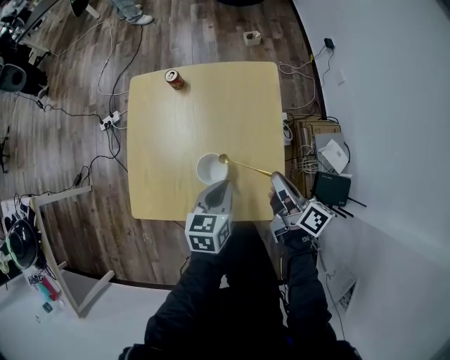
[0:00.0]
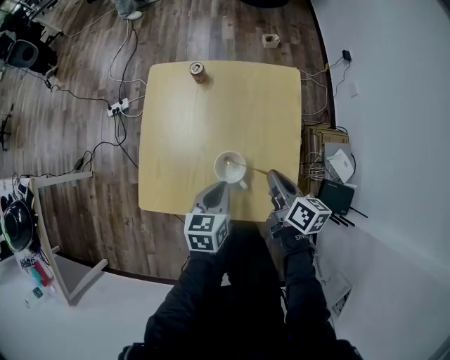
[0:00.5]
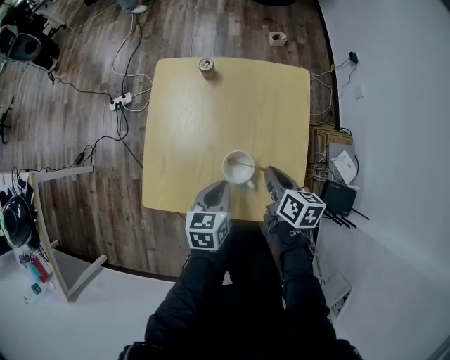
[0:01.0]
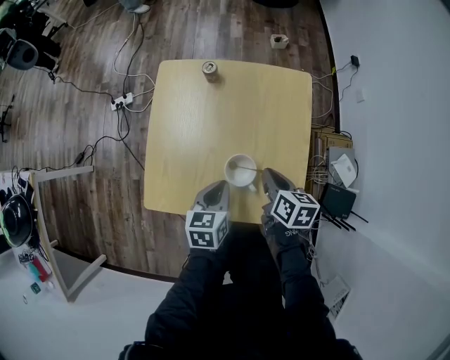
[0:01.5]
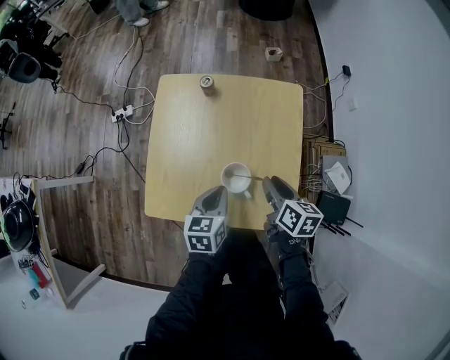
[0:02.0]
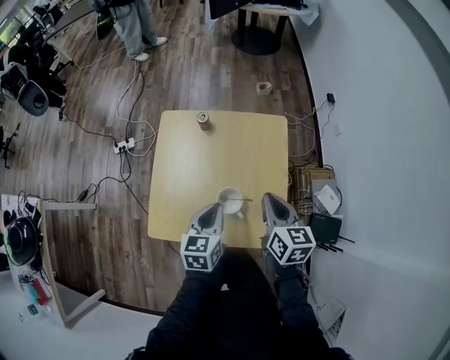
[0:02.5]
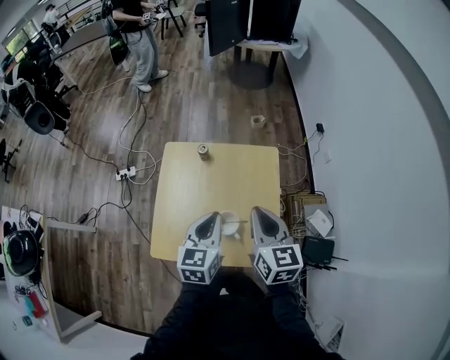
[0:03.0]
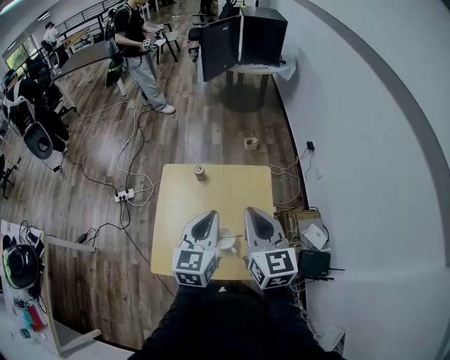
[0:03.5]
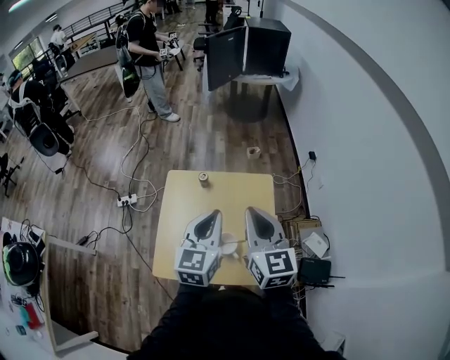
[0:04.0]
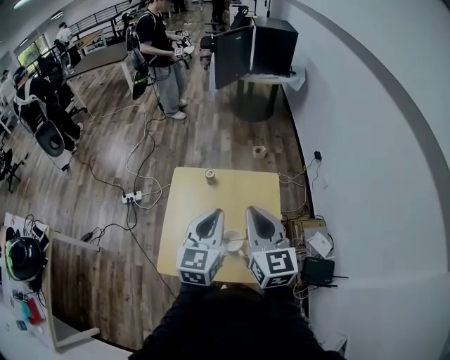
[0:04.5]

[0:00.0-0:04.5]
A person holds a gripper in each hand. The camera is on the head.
0:00.0 to 0:02.0: Both grippers move to the left, some 10 cm. The right gripper rotates roughly 30 degrees, and opens up.
0:02.0 to 0:04.5: Both grippers travel together upward, about 30 cm. The left gripper rotates roughly 30 degrees; the right gripper turns by approximately 50 degrees, and closes its fingers.

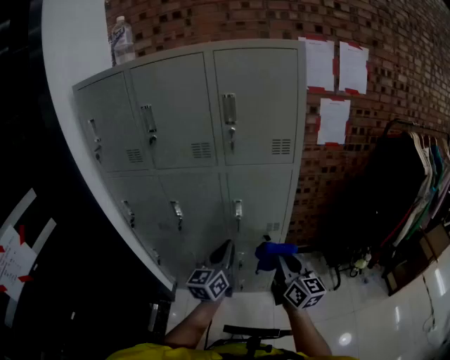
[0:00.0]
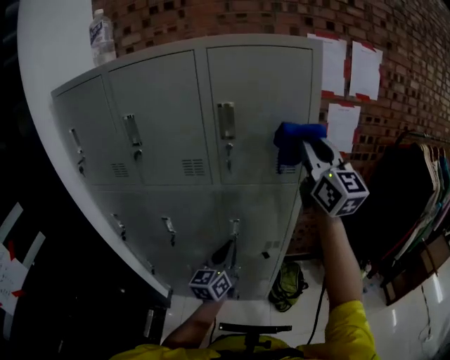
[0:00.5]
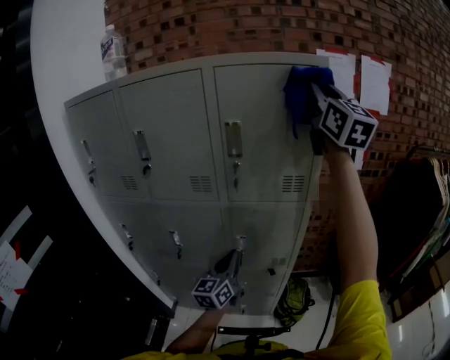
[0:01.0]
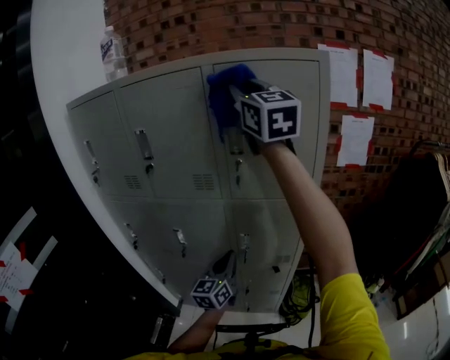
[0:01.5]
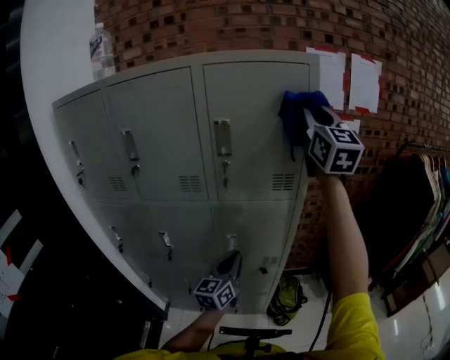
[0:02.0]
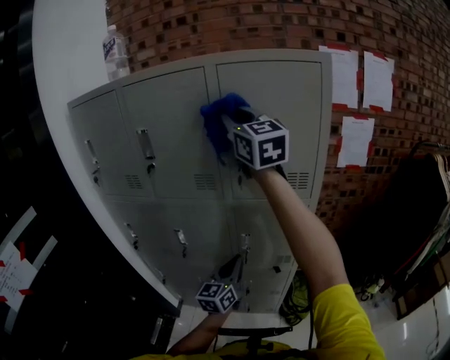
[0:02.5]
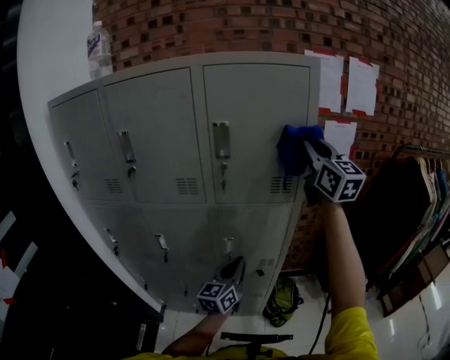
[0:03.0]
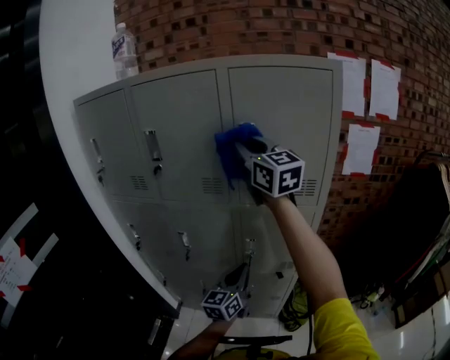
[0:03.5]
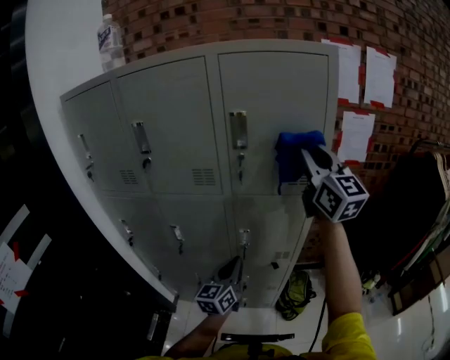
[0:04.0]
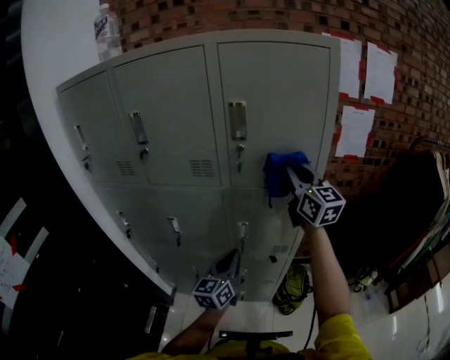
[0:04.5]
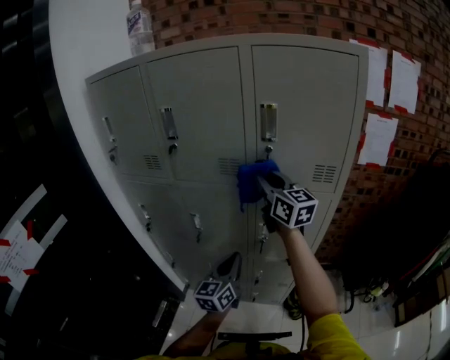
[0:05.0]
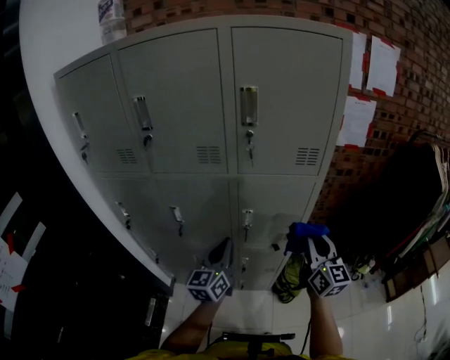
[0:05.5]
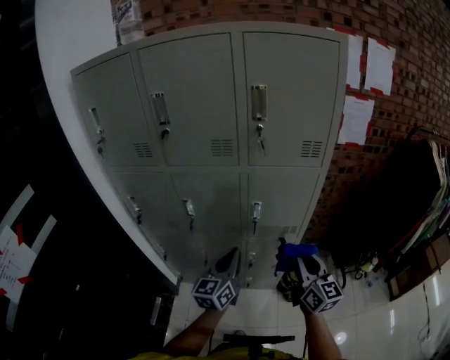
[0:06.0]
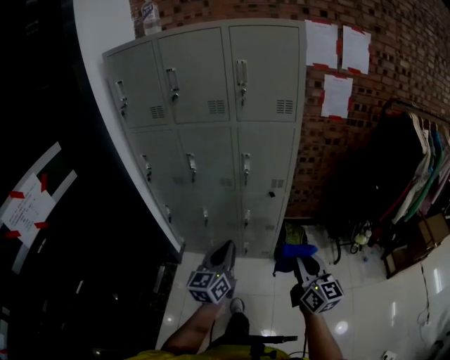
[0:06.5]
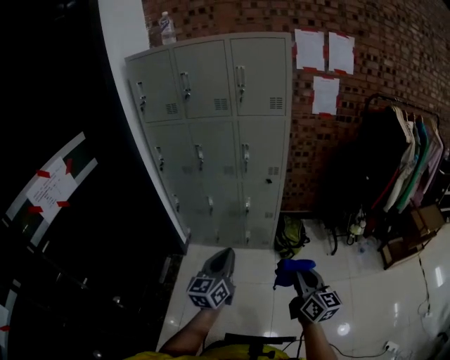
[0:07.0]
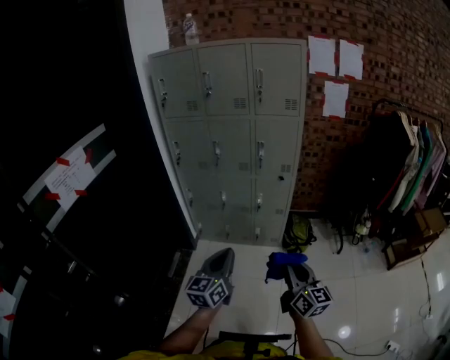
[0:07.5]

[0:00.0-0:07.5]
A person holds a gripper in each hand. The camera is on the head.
0:00.0 to 0:02.0: The right gripper heads upward and forward, covering some 50 cm, and swivels about 40 degrees, while the left gripper travels forward by roughly 15 cm.
0:02.0 to 0:04.0: The right gripper goes left and right, about 25 cm each way, reversing 3 times, while the left gripper swings left and right, some 5 cm each way, with 2 reversals.
0:04.0 to 0:05.5: The right gripper heads downward, covering about 25 cm, and rotates about 20 degrees.
0:05.5 to 0:07.5: Both grippers are carried backward, some 60 cm.

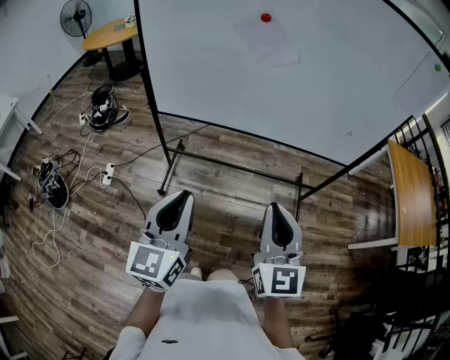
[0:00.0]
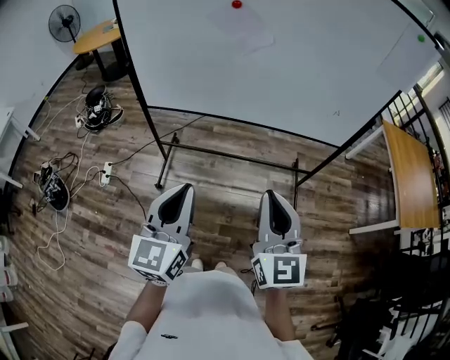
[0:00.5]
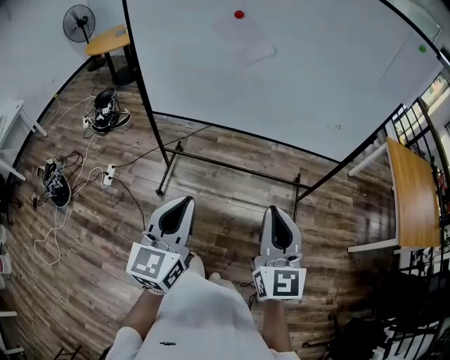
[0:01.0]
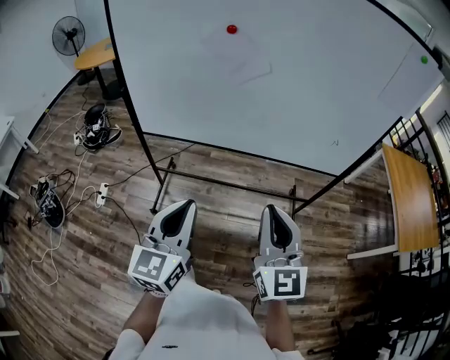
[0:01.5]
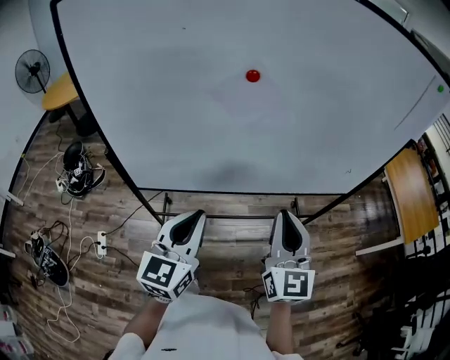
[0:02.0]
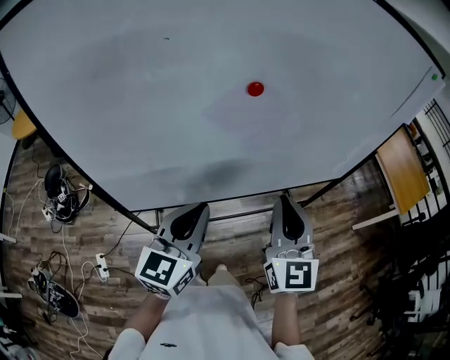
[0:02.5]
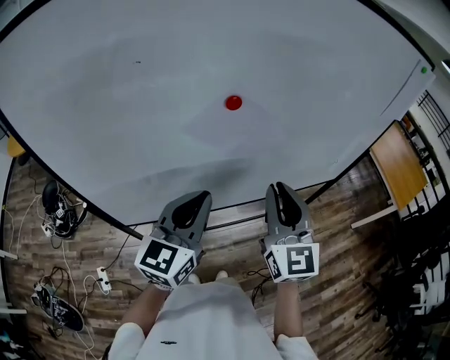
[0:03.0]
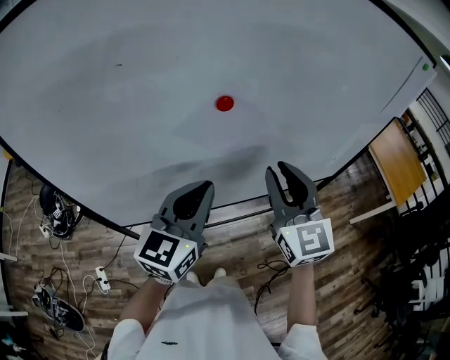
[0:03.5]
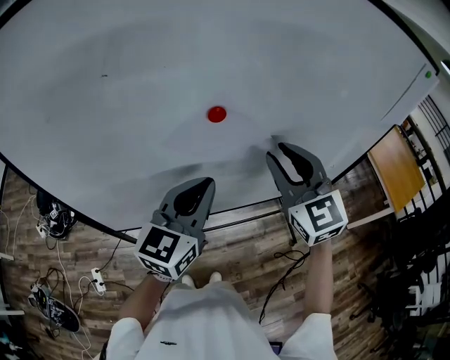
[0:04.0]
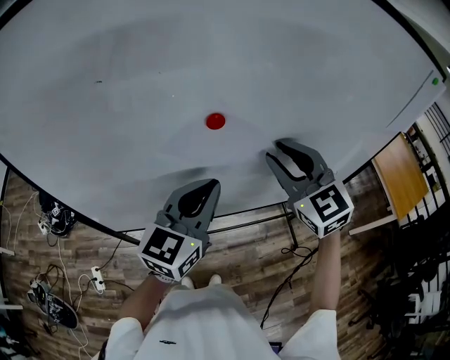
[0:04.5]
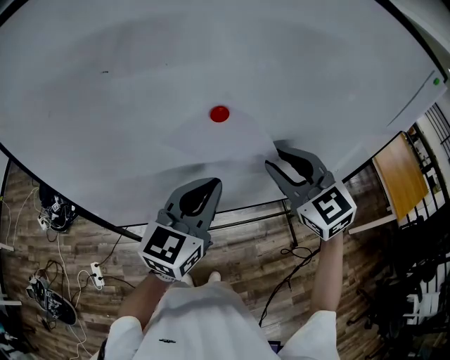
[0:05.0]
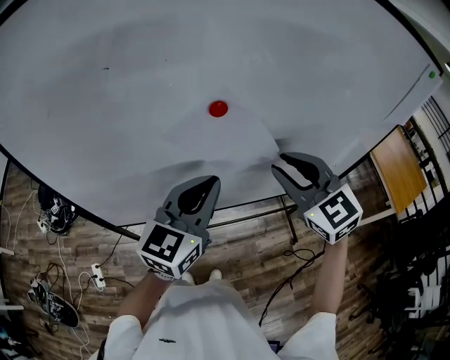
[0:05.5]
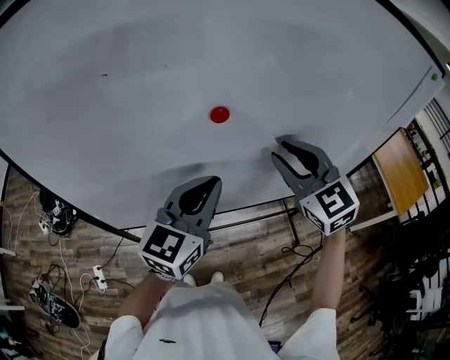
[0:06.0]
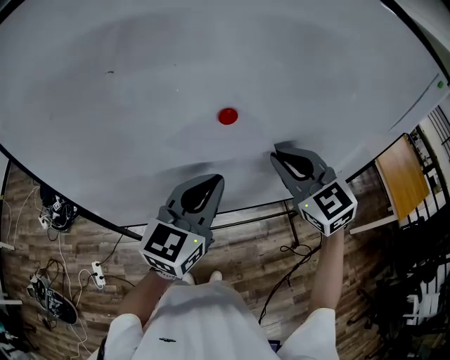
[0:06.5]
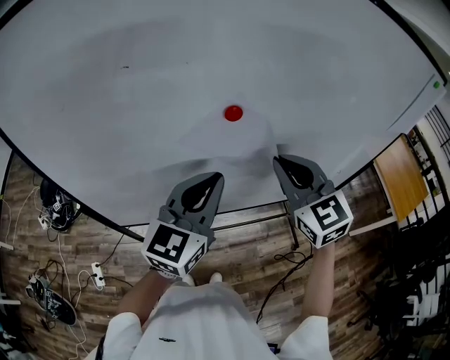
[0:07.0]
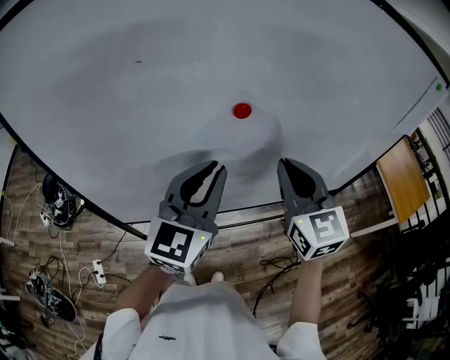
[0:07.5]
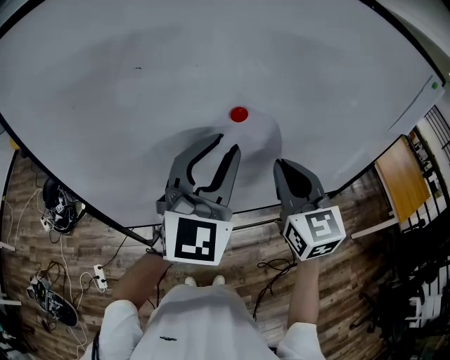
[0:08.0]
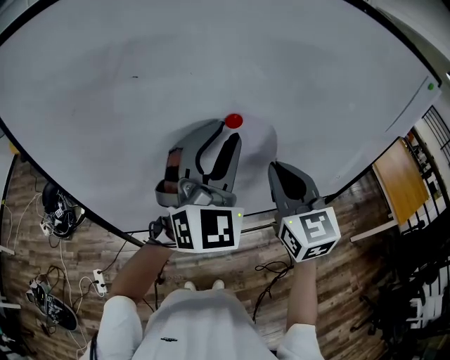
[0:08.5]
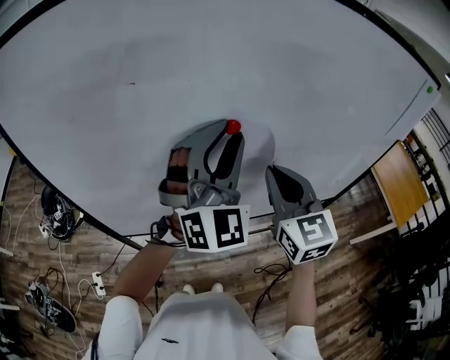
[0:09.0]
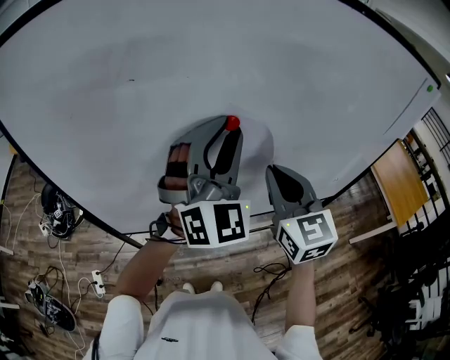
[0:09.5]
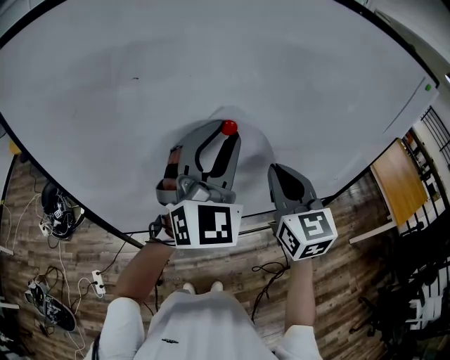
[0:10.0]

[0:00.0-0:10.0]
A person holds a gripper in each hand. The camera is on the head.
0:00.0 to 0:02.0: The grippers both shift forward by approximately 25 cm.
0:02.0 to 0:04.0: The right gripper travels forward and upward by some 25 cm, swivels roughly 20 degrees, and opens. The left gripper shifts some 20 cm forward.
0:04.0 to 0:06.0: There are only small adjustments of the grippers.
0:06.0 to 0:08.0: The right gripper turns by about 20 degrees, and closes; the left gripper moves upward, approximately 10 cm, and swivels some 30 degrees.

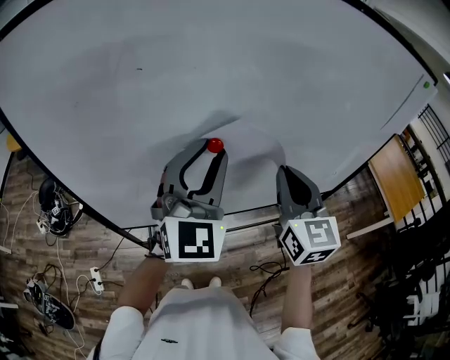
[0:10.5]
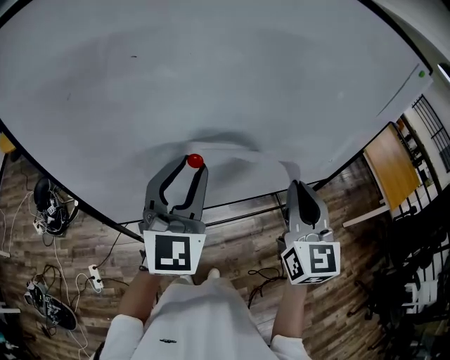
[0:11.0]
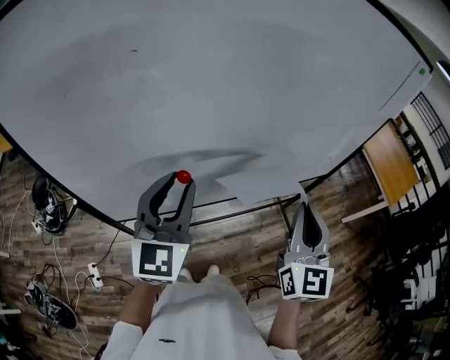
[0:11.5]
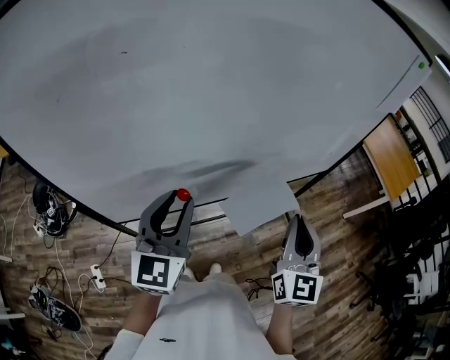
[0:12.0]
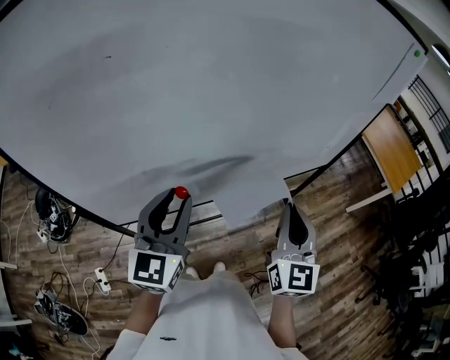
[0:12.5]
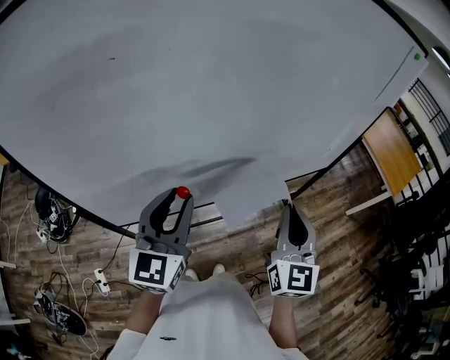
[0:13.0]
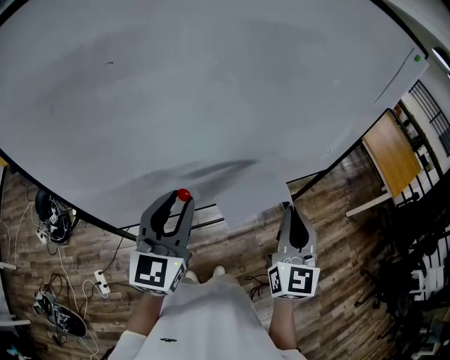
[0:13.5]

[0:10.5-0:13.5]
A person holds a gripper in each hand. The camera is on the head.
0:10.5 to 0:12.0: The right gripper shifts approximately 15 cm backward, downward and to the right, and rotates roughly 20 degrees. Meanwhile the left gripper goes approximately 15 cm downward and backward, and changes its angle by roughly 30 degrees.
0:12.0 to 0:13.5: The grippers move only a little.

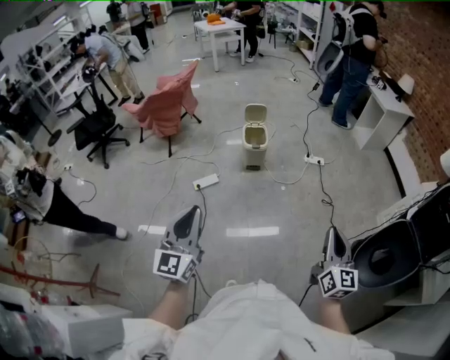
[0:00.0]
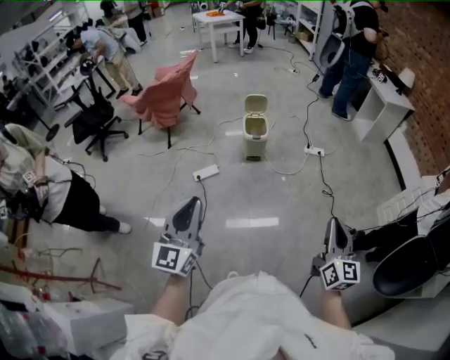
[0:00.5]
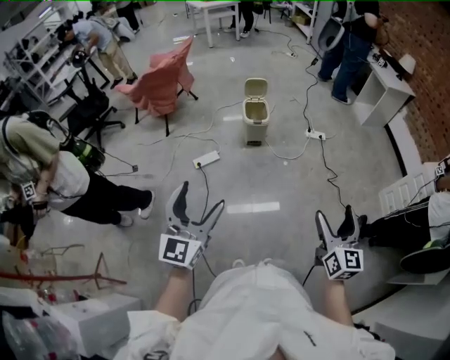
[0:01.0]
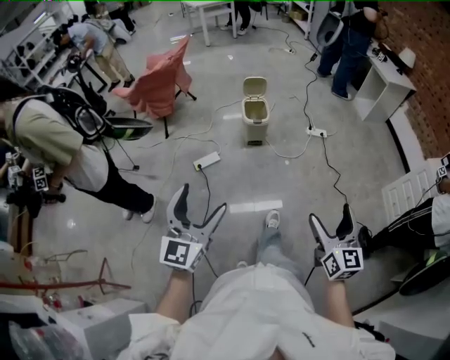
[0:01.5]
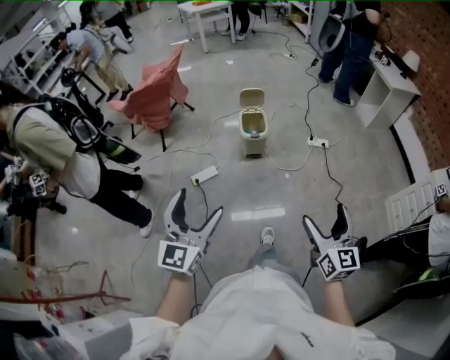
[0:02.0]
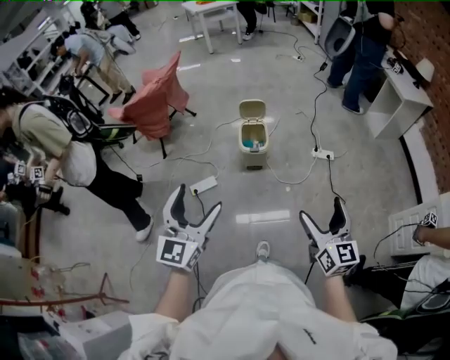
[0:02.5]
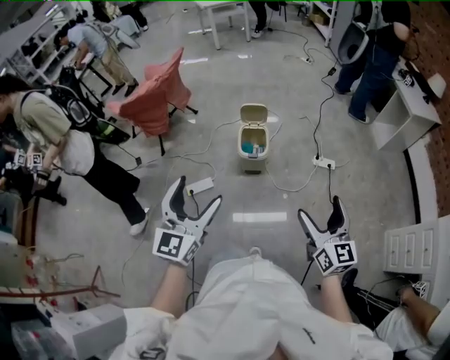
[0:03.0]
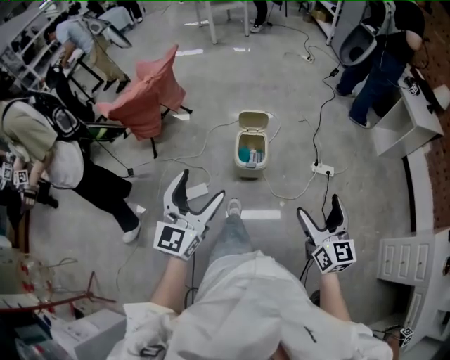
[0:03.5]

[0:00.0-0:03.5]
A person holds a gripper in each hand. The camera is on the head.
0:00.0 to 0:02.0: The right gripper travels forward and to the left by roughly 15 cm, and opens up. The left gripper moves forward, some 15 cm, and opens up.
0:02.0 to 0:03.5: The two grippers go roughly 35 cm forward.
